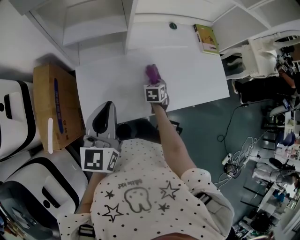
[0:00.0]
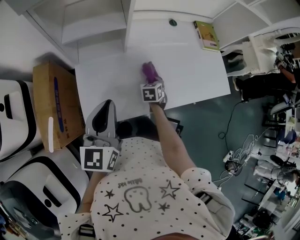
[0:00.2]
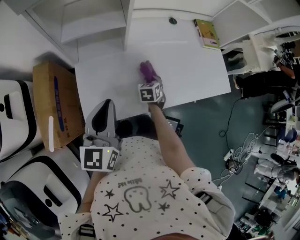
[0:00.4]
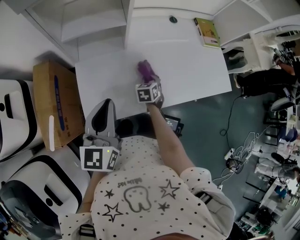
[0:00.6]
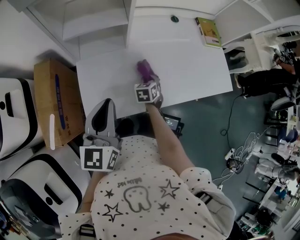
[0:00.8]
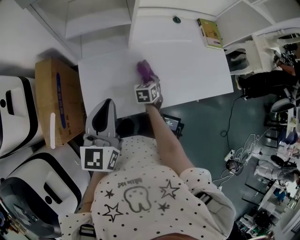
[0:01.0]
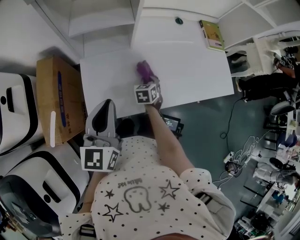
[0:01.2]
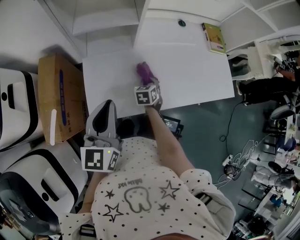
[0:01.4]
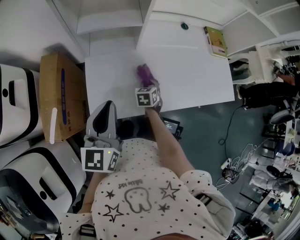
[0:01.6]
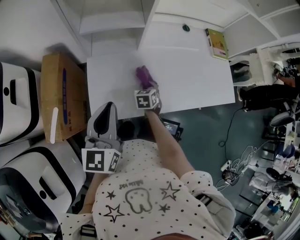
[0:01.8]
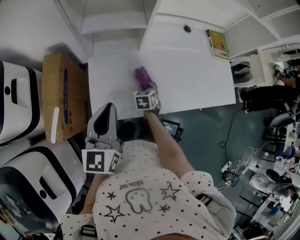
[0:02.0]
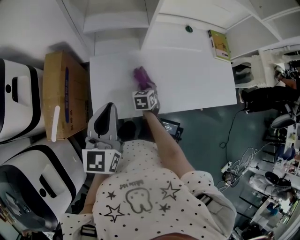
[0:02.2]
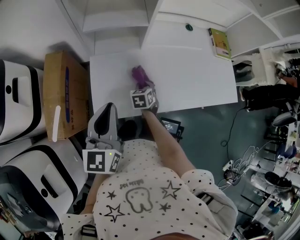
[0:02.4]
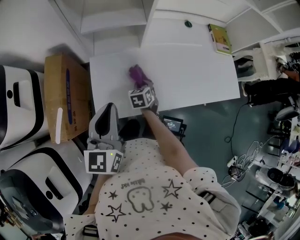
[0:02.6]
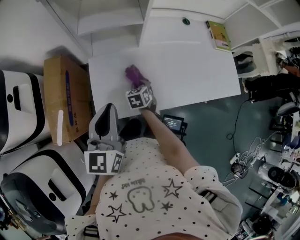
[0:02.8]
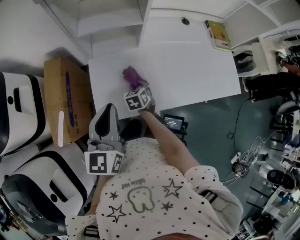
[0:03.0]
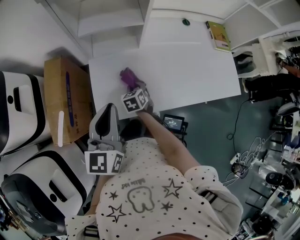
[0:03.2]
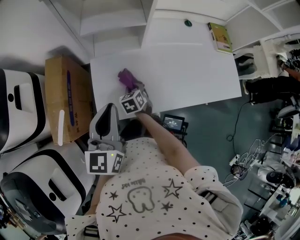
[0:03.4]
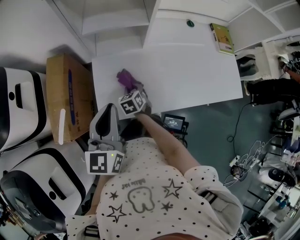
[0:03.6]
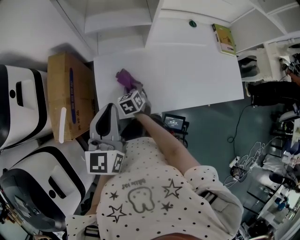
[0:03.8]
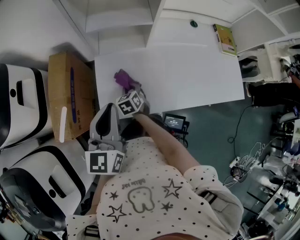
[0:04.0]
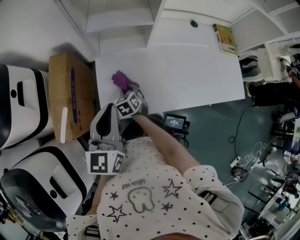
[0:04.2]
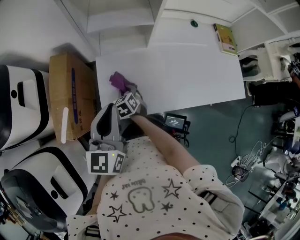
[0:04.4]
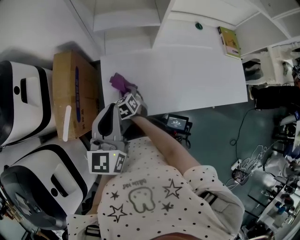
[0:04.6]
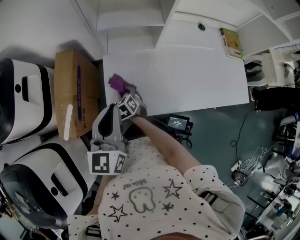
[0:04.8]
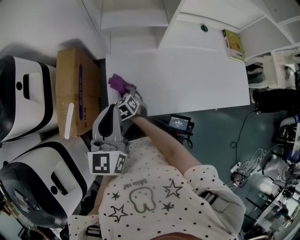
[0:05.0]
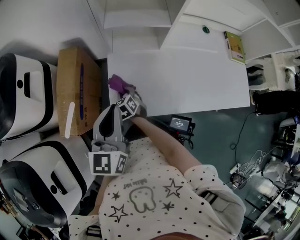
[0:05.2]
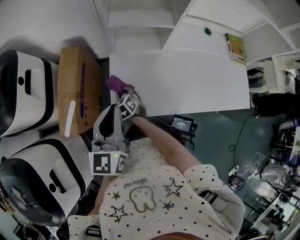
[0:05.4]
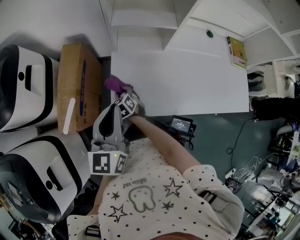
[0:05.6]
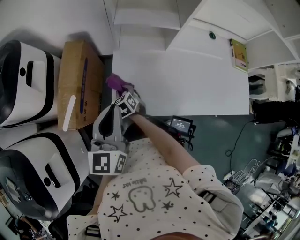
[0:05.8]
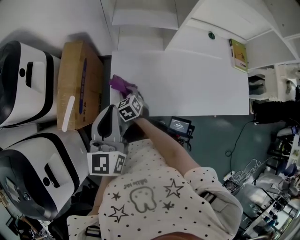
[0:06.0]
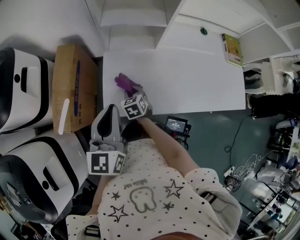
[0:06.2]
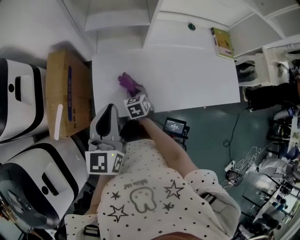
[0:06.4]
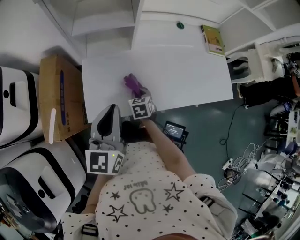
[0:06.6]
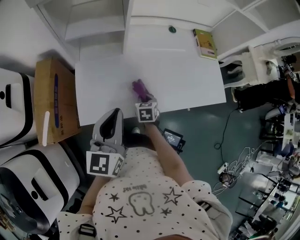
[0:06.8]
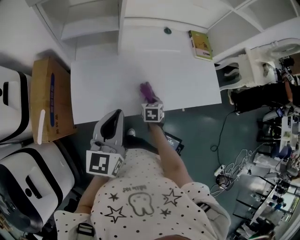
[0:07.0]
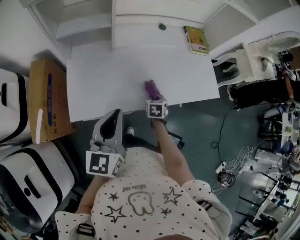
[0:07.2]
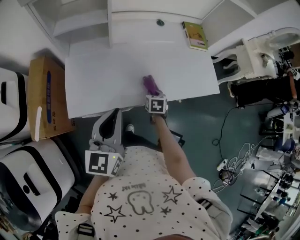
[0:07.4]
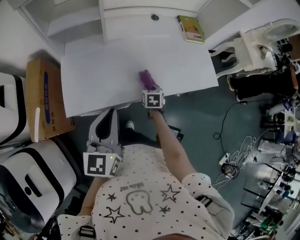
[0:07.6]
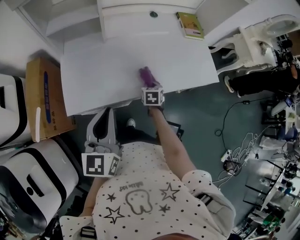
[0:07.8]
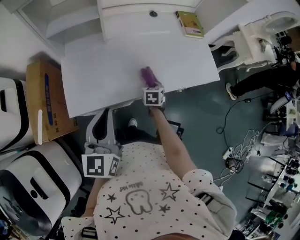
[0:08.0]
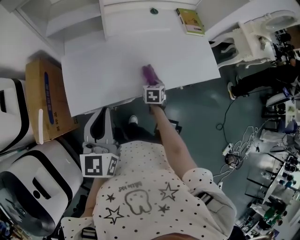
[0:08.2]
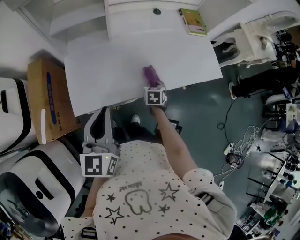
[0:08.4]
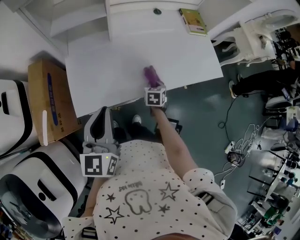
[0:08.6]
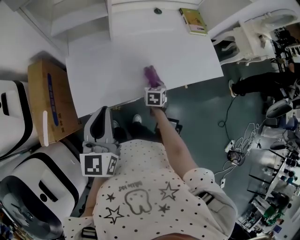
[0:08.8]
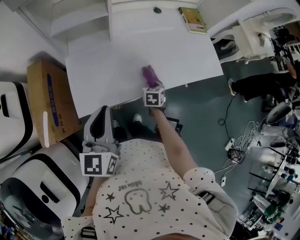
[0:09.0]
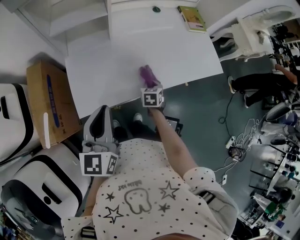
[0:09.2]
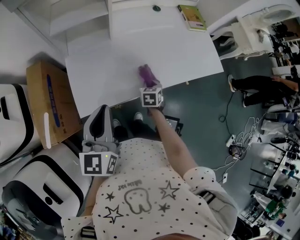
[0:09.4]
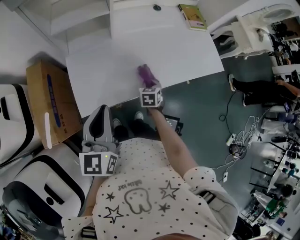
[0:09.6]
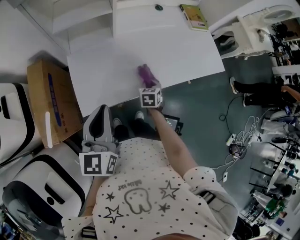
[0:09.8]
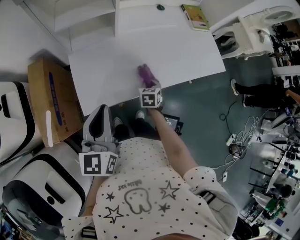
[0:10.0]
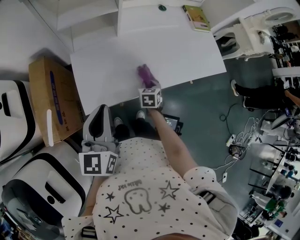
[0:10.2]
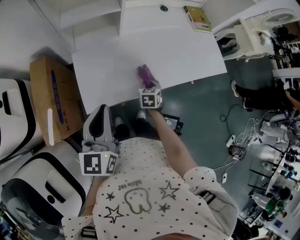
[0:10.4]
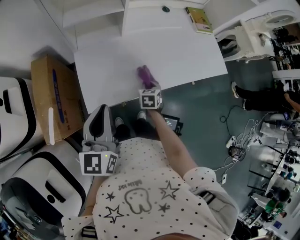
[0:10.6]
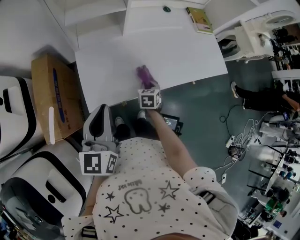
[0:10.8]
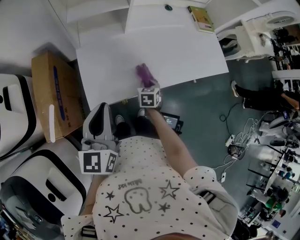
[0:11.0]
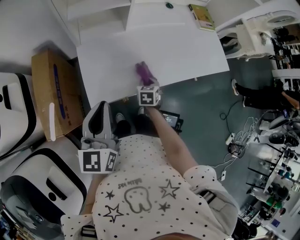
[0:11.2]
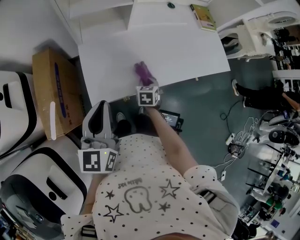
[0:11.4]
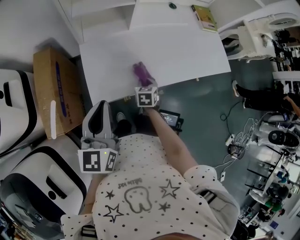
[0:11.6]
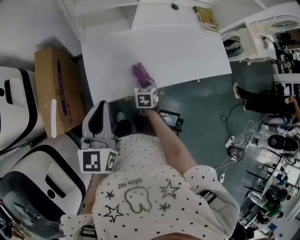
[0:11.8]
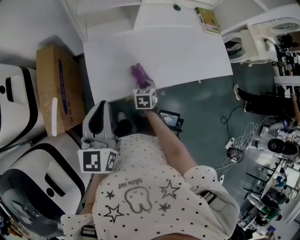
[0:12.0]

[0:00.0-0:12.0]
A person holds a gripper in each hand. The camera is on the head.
0:00.0 to 0:01.6: The right gripper heads to the left, covering some 10 cm.
0:01.6 to 0:03.0: The right gripper heads to the left, covering approximately 10 cm.
0:03.0 to 0:04.4: The right gripper travels to the left by about 10 cm.
0:04.4 to 0:06.0: The right gripper goes approximately 5 cm to the left.
0:06.0 to 0:07.6: The right gripper shifts by some 40 cm, and swivels about 40 degrees, while the left gripper moves approximately 25 cm.
0:07.6 to 0:09.0: The left gripper moves to the left, roughly 10 cm. Meanwhile the right gripper ends up roughly 5 cm from where it was.
0:09.0 to 0:10.4: The grippers both shift to the left by some 5 cm.
0:10.4 to 0:12.0: The left gripper moves some 5 cm. Meanwhile the right gripper moves to the left, approximately 10 cm.

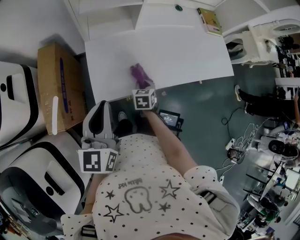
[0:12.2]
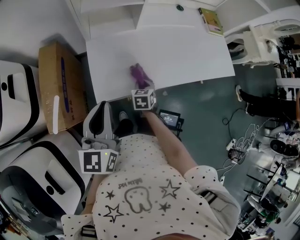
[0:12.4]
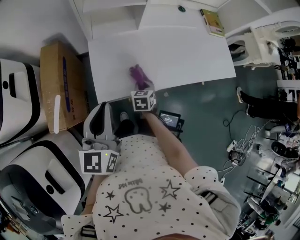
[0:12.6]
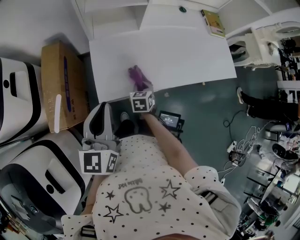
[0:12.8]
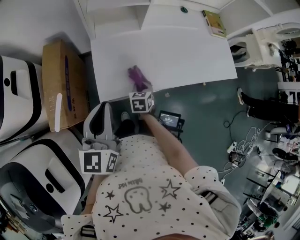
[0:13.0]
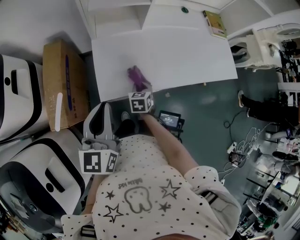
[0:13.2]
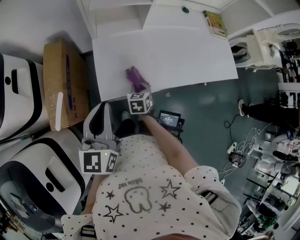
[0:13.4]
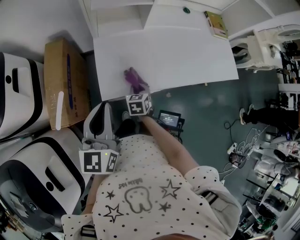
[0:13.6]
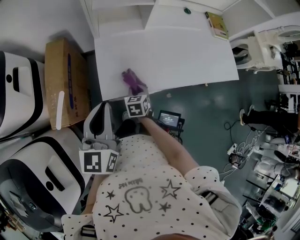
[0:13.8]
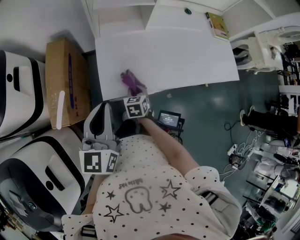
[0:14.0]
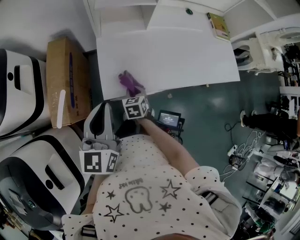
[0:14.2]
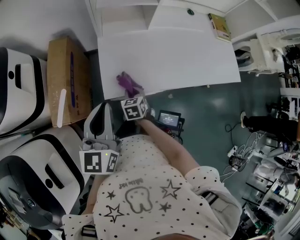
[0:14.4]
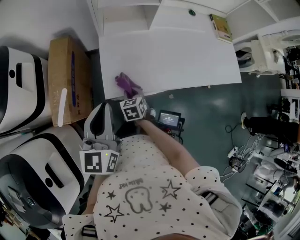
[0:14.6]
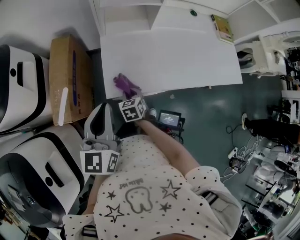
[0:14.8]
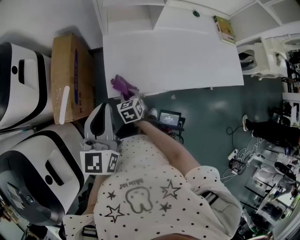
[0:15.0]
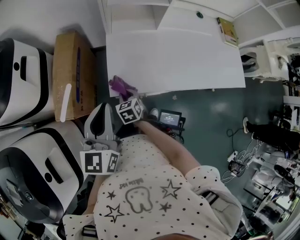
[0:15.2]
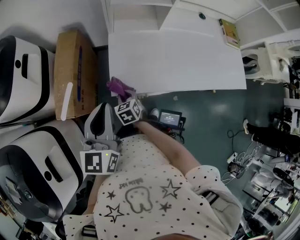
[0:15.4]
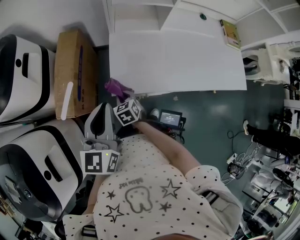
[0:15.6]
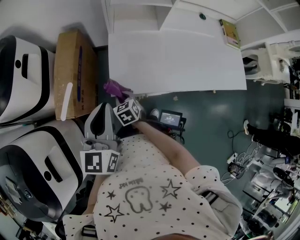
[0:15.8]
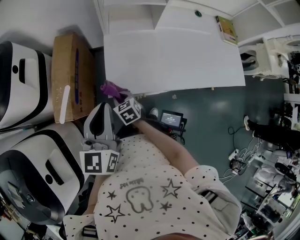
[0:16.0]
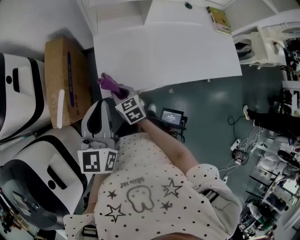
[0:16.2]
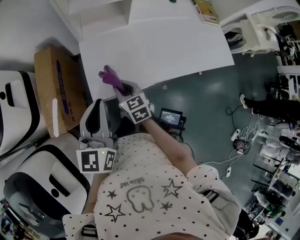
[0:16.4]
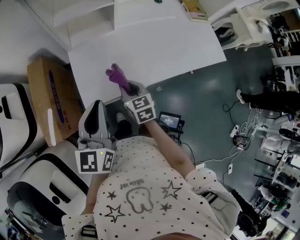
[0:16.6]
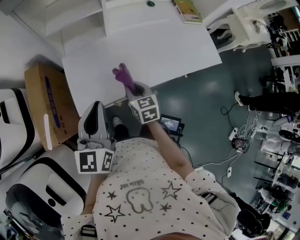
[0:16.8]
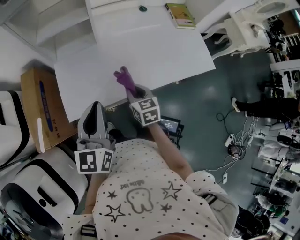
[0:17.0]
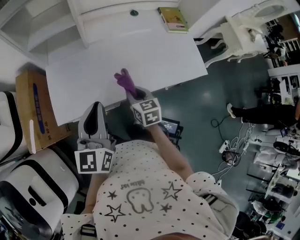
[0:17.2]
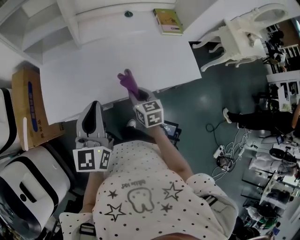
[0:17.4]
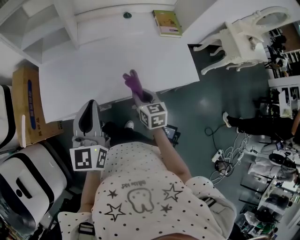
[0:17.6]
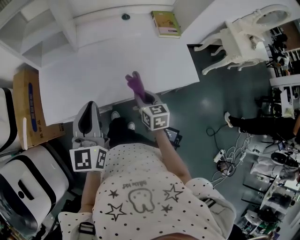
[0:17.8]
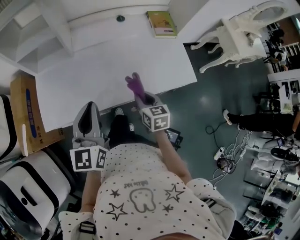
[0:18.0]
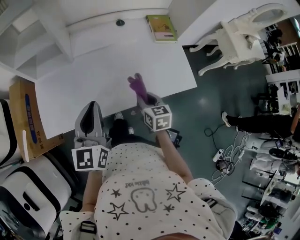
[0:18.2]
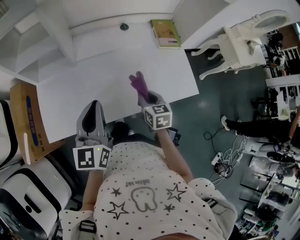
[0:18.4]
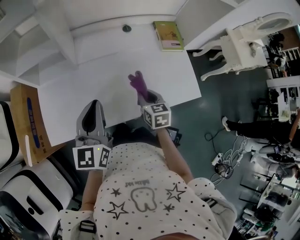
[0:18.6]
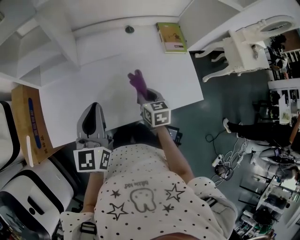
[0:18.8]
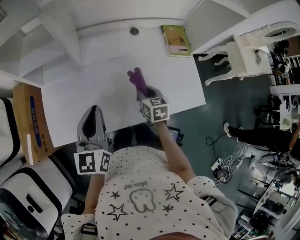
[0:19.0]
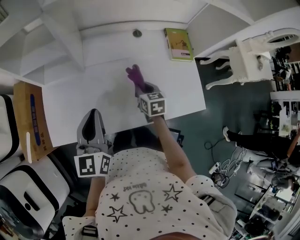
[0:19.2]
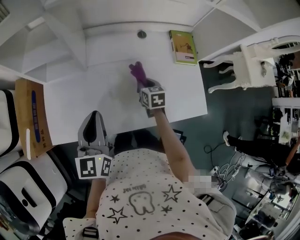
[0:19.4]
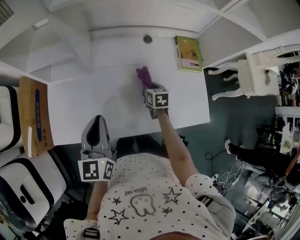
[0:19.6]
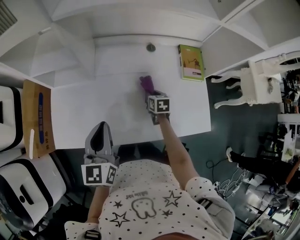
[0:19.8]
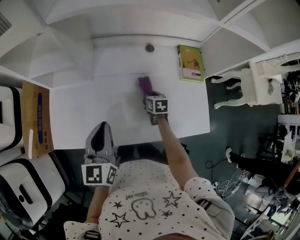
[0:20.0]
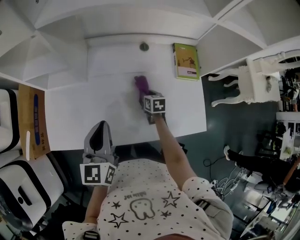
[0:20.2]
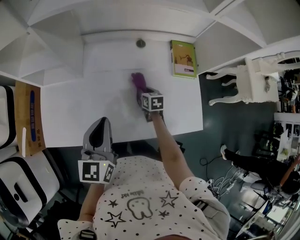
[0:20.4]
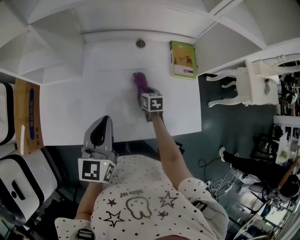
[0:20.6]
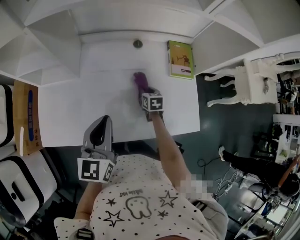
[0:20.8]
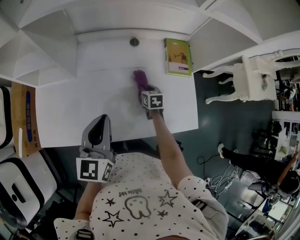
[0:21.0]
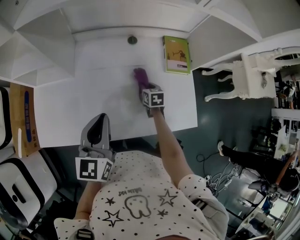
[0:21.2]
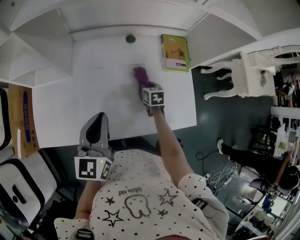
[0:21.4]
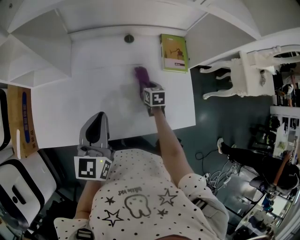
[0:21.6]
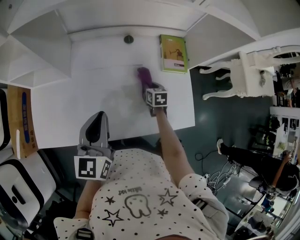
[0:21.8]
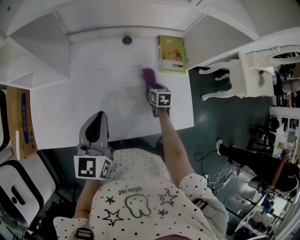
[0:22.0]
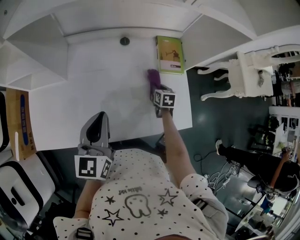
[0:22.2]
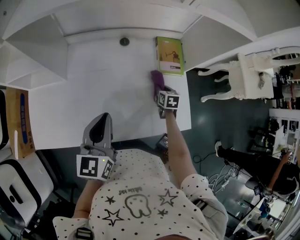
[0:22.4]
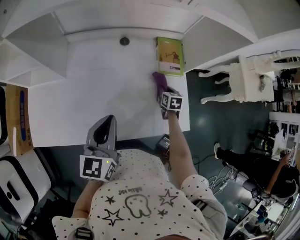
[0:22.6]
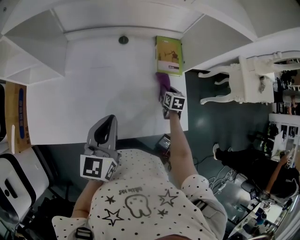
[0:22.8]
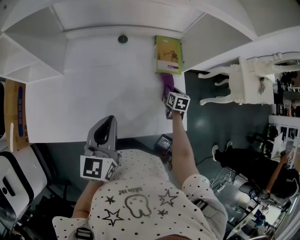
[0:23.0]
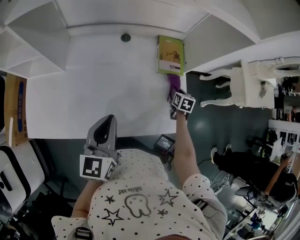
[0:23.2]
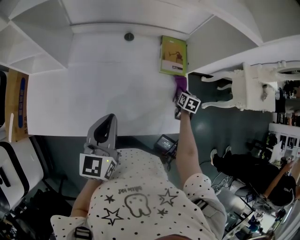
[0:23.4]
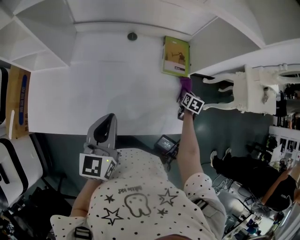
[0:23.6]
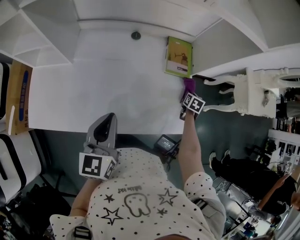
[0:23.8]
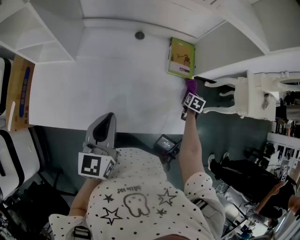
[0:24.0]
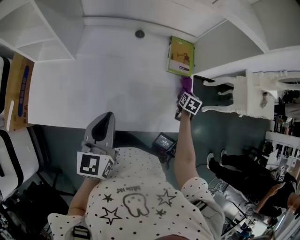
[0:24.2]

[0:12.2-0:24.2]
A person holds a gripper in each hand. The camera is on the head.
0:12.2 to 0:13.8: The right gripper travels to the left by approximately 10 cm.
0:13.8 to 0:15.2: The right gripper is displaced to the left by roughly 10 cm.
0:15.2 to 0:16.6: The left gripper heads to the right, covering about 10 cm; the right gripper goes roughly 15 cm to the right and upward, and turns by approximately 20 degrees.
0:16.6 to 0:18.2: Both grippers move to the right, roughly 30 cm.
0:18.2 to 0:19.8: The left gripper moves forward, some 10 cm. The right gripper is displaced forward and downward by some 25 cm.
0:19.8 to 0:21.2: The two grippers go some 10 cm to the right.
0:21.2 to 0:22.6: The left gripper travels to the right by roughly 5 cm. Meanwhile the right gripper goes approximately 15 cm to the right.
0:22.6 to 0:24.2: The right gripper is displaced to the right by about 10 cm.
